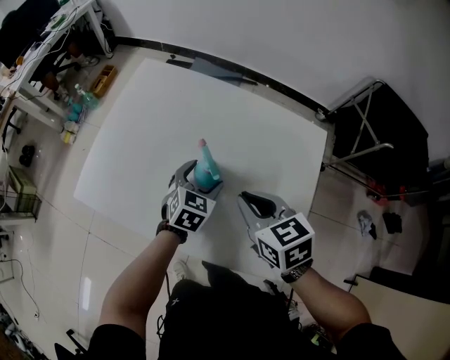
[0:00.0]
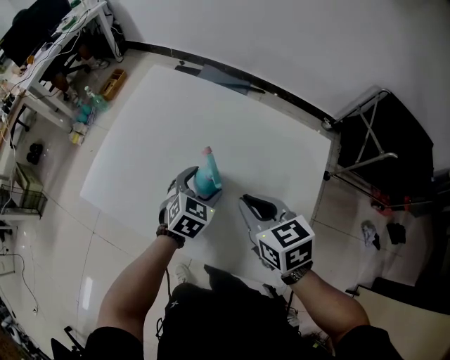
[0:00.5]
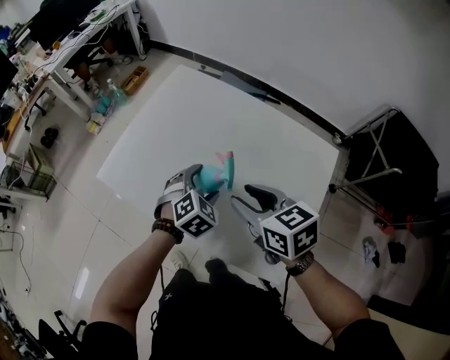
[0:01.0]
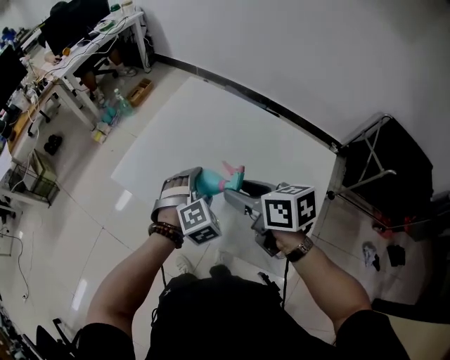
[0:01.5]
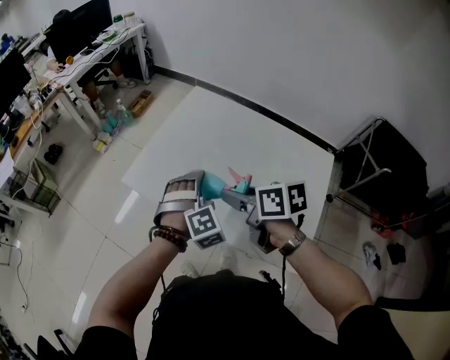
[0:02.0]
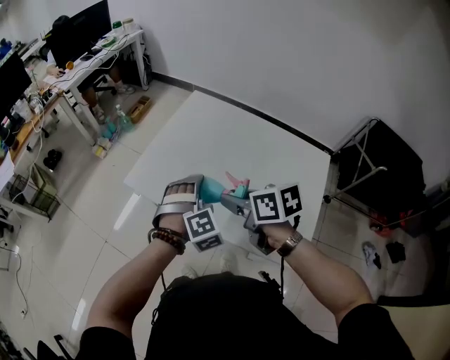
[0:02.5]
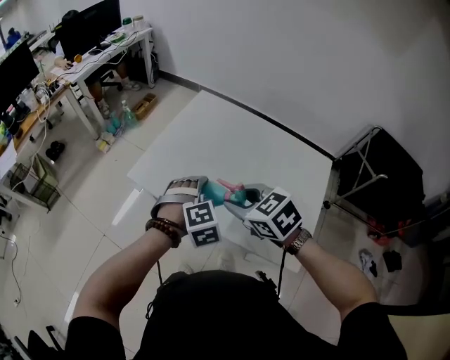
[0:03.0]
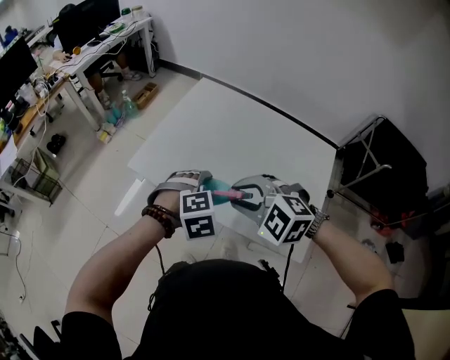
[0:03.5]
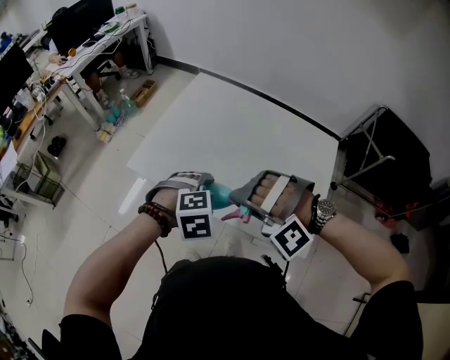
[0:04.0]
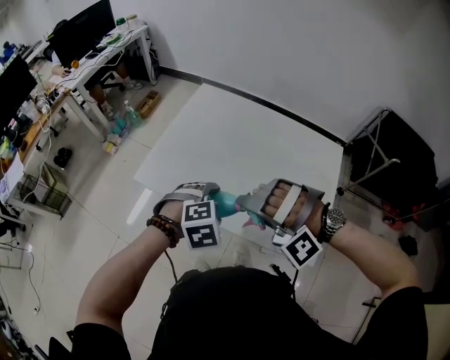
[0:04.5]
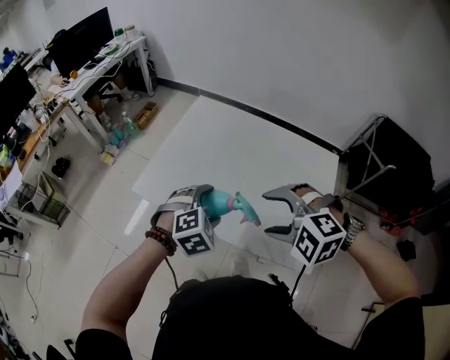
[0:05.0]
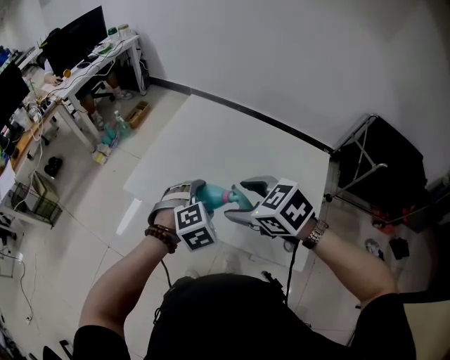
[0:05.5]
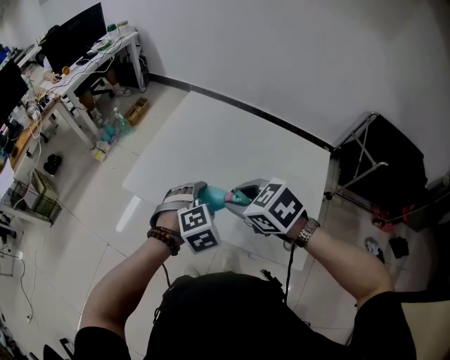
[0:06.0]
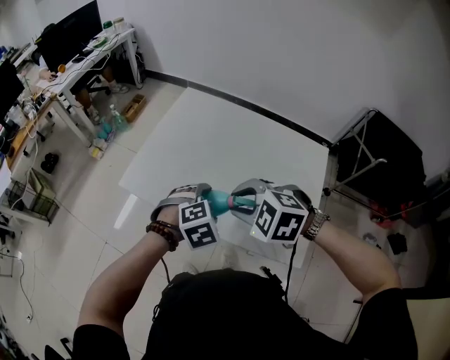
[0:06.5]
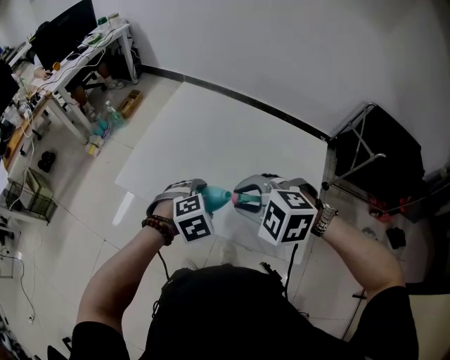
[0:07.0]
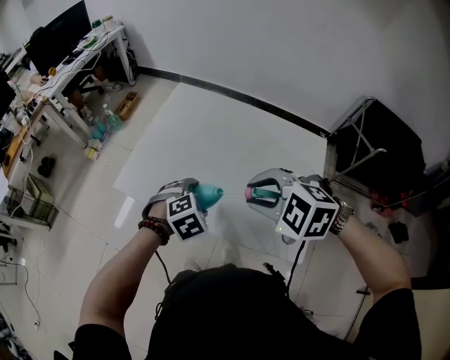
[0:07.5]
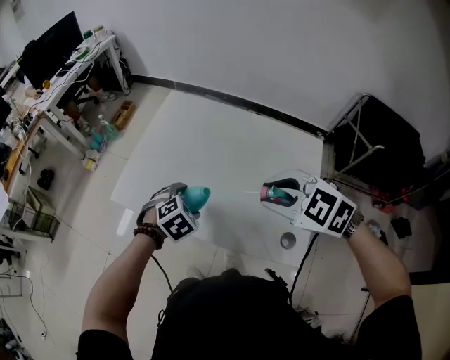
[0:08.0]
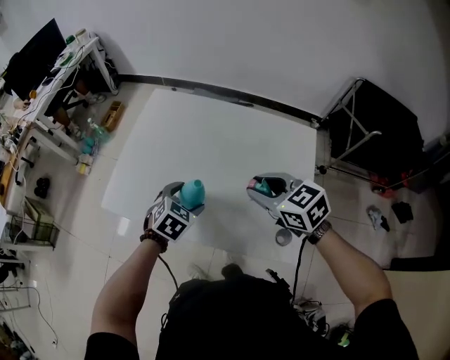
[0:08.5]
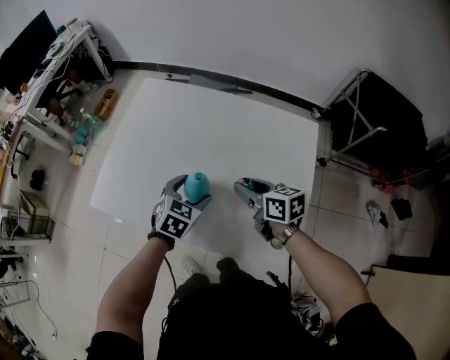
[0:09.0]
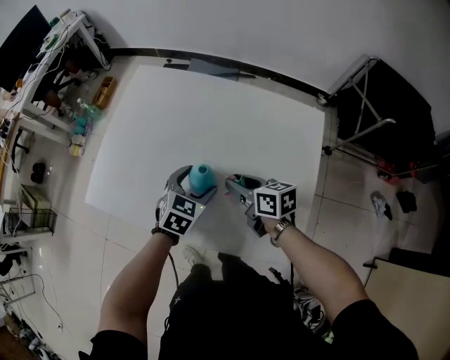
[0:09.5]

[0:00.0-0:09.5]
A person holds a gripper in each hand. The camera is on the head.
0:00.0 to 0:02.0: The left gripper moves roughly 20 cm, and rotates around the line of its fingers by roughly 40 degrees, clockwise from behind. Meanwhile the right gripper ends up about 15 cm from where it was, changes its angle by roughly 30 degrees, and opens up.
0:02.0 to 0:04.0: The right gripper ends up some 10 cm from where it was, and rotates around the line of its fingers by approximately 140 degrees, counterclockwise from behind. Meanwhile the left gripper moves some 10 cm, and rotates about 30 degrees.
0:04.0 to 0:05.5: The two grippers go some 5 cm forward. The right gripper twists roughly 90 degrees clockwise, seen from behind, and opens.
0:05.5 to 0:07.5: The right gripper turns by roughly 30 degrees, and closes its fingers.
0:07.5 to 0:09.5: The right gripper shifts some 25 cm downward, forward and to the right, and rotates around the line of its fingers by approximately 80 degrees, clockwise from behind. Meanwhile the left gripper heads to the right, forward and downward, covering about 15 cm, and turns by approximately 30 degrees.

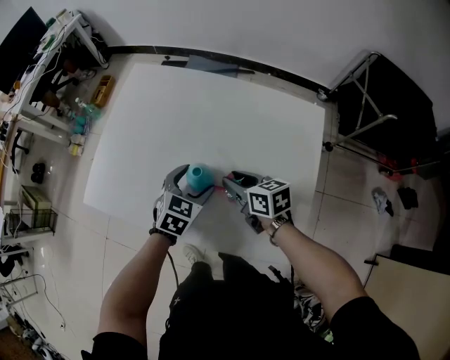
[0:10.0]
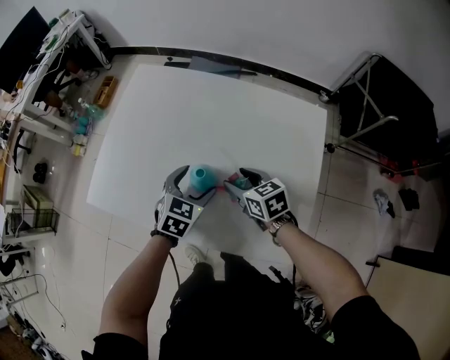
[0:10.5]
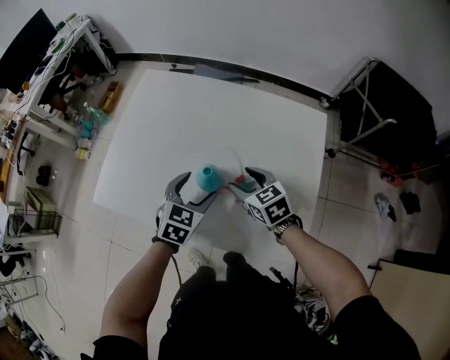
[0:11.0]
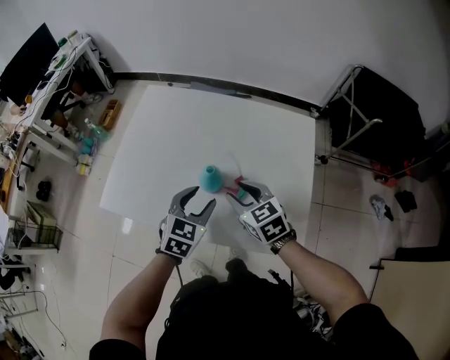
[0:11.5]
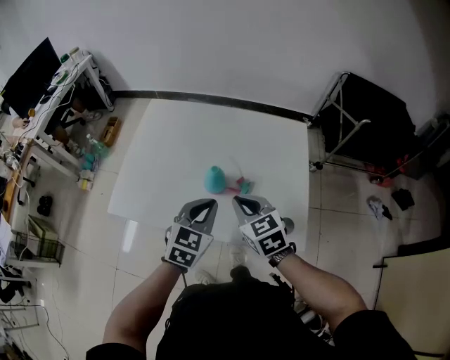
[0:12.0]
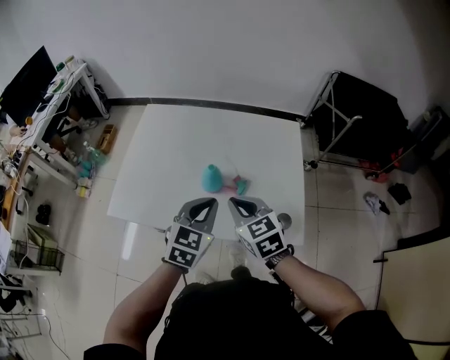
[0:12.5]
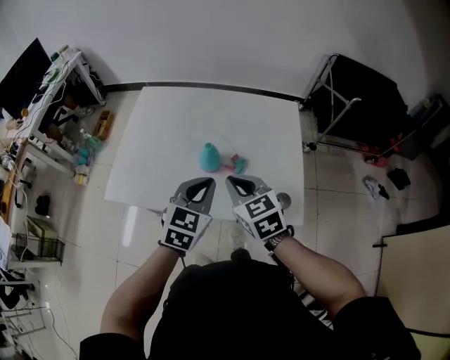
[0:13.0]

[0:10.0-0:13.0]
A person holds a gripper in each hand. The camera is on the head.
0:10.0 to 0:11.5: The left gripper goes about 10 cm upward and backward, and closes its fingers. The right gripper is displaced upward by about 5 cm, and changes its angle by approximately 30 degrees.
0:11.5 to 0:13.0: The two grippers go some 10 cm upward and backward. The right gripper closes; the left gripper closes its fingers.

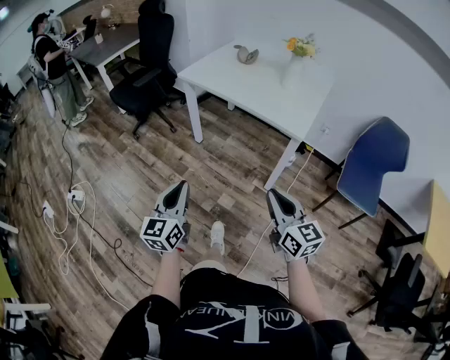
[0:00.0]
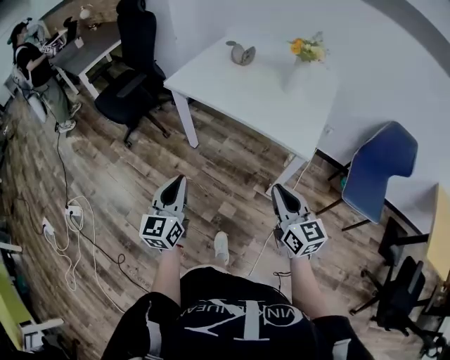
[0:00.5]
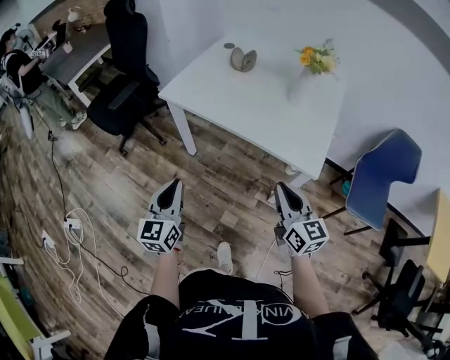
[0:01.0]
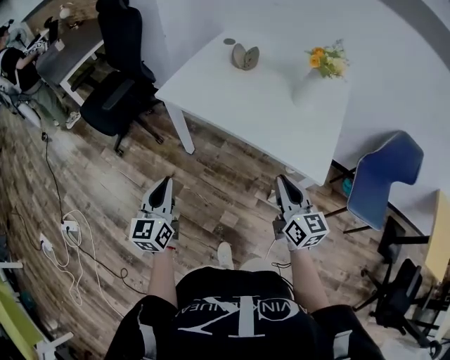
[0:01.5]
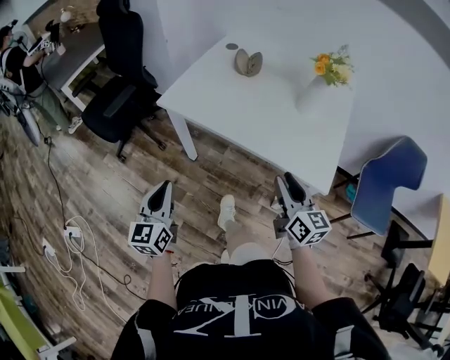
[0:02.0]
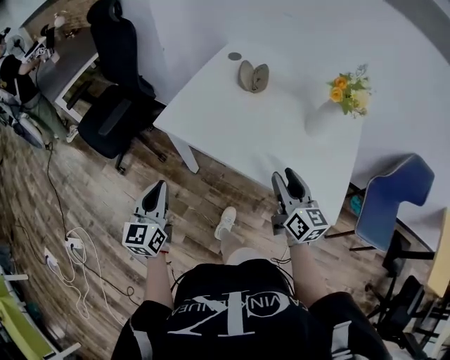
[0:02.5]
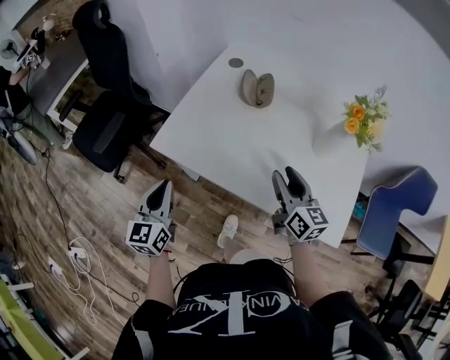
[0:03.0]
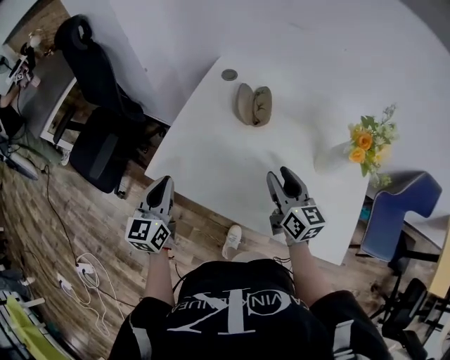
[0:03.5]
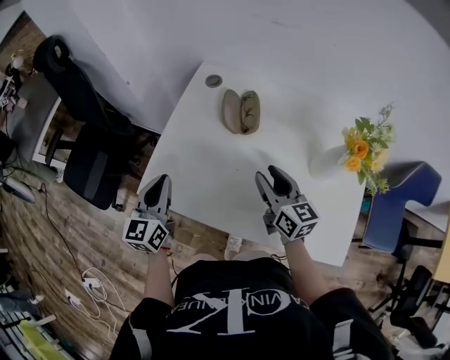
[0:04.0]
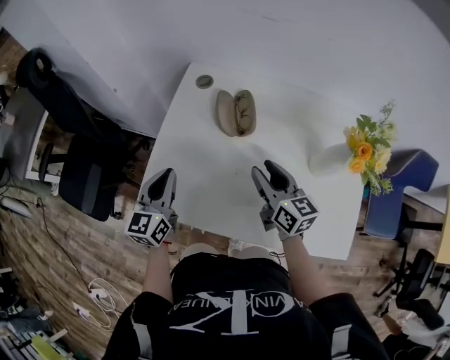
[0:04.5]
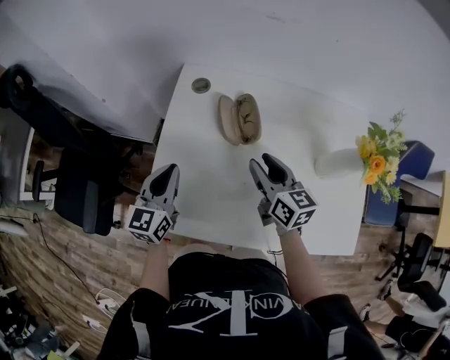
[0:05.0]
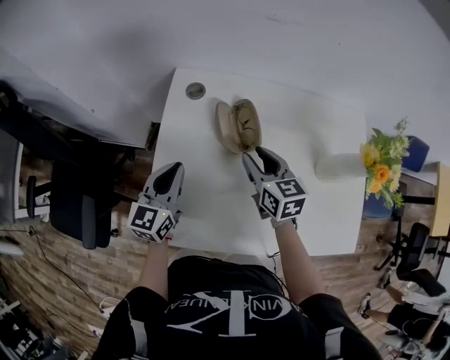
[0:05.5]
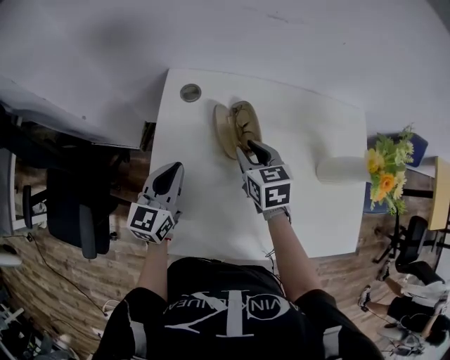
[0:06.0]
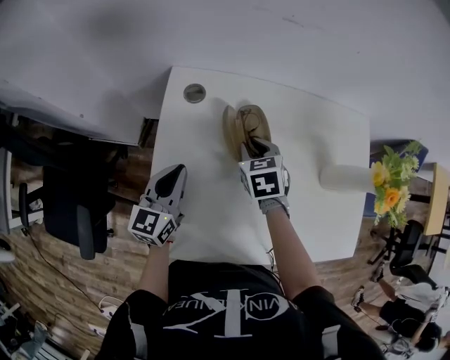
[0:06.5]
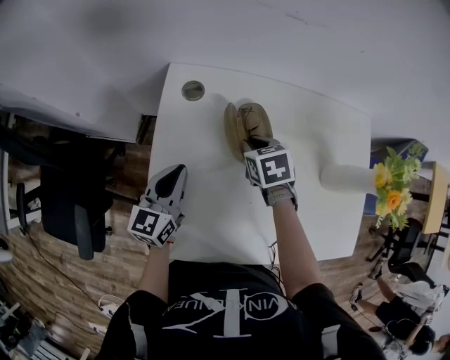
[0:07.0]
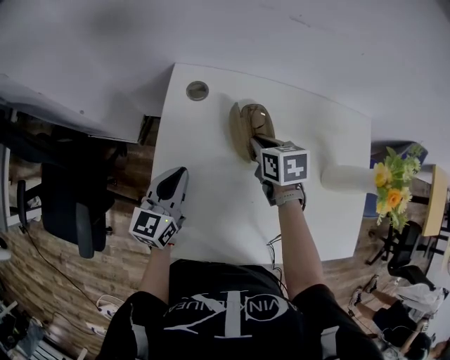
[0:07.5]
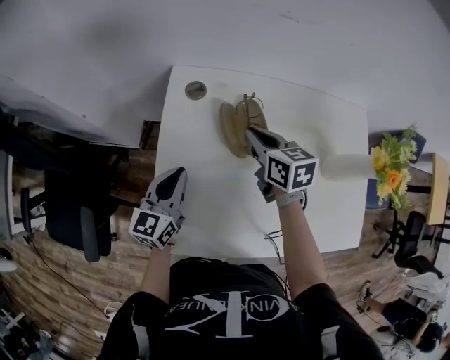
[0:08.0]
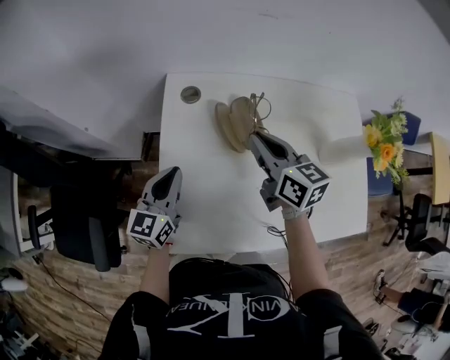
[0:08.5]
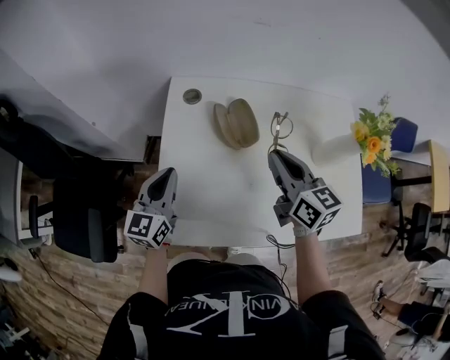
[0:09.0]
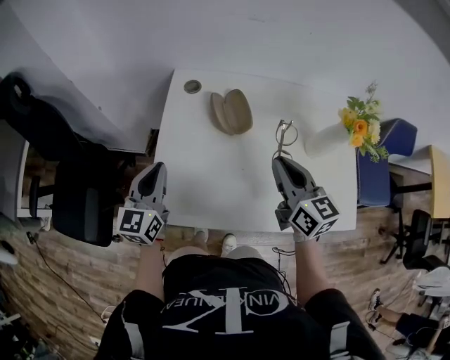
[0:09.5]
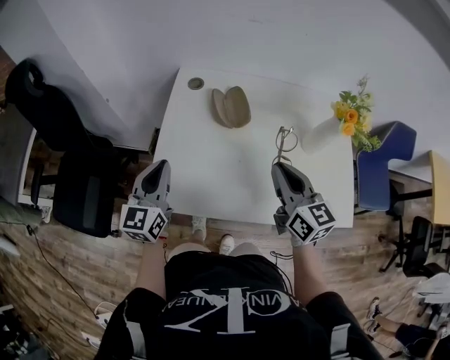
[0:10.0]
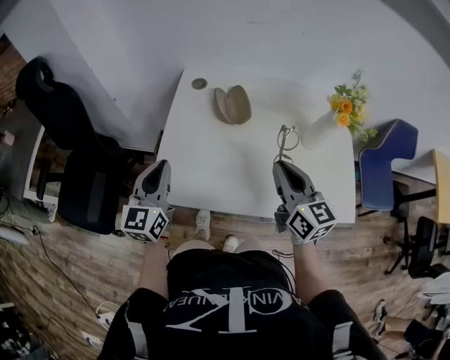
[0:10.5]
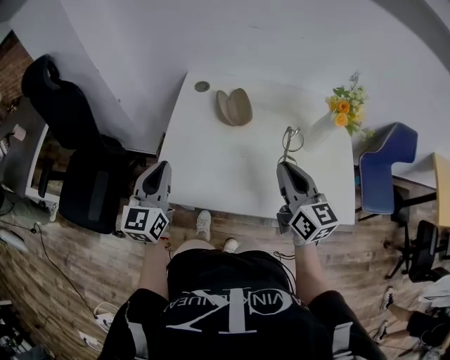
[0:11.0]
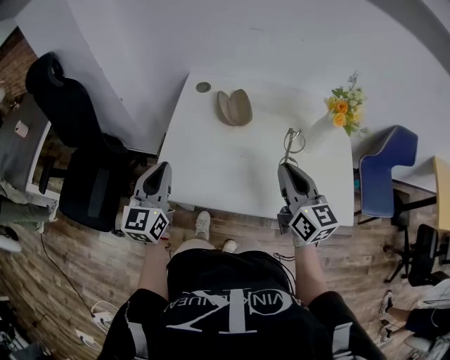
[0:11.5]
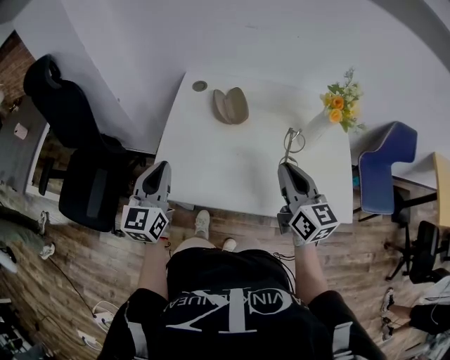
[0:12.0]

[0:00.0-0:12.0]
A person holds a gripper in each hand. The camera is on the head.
0:00.0 to 0:02.0: The two grippers go roughly 40 cm forward. The right gripper opens up.
0:02.0 to 0:04.0: Both grippers travel together forward, approximately 40 cm.
0:04.0 to 0:06.0: The left gripper is displaced forward by approximately 20 cm, and turns by approximately 30 degrees. Meanwhile the right gripper travels forward and to the left by roughly 20 cm, and rotates some 30 degrees.
0:06.0 to 0:08.0: The right gripper closes.
0:08.0 to 0:10.0: The right gripper goes approximately 30 cm backward, upward and to the right, and changes its angle by some 30 degrees. Meanwhile the left gripper is displaced backward and upward by roughly 20 cm.
0:10.0 to 0:12.0: The grippers both shift backward by approximately 5 cm.

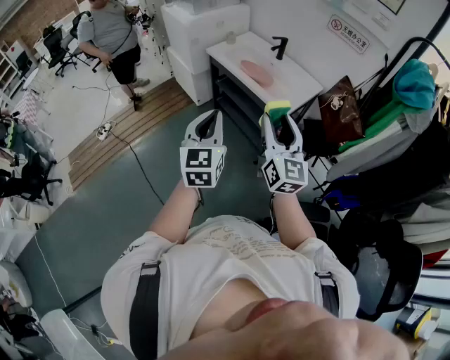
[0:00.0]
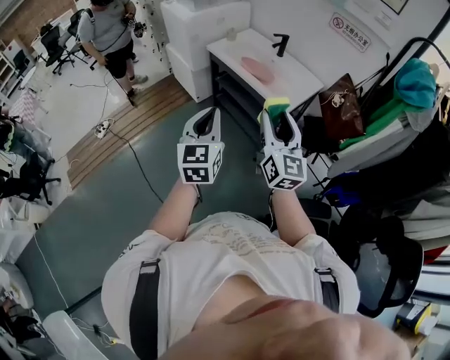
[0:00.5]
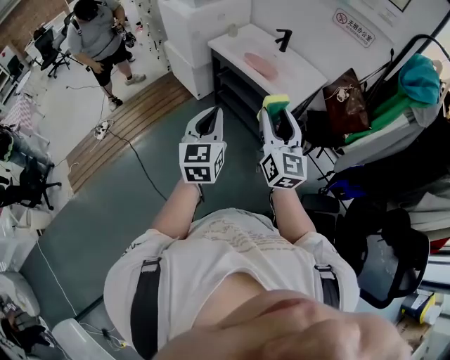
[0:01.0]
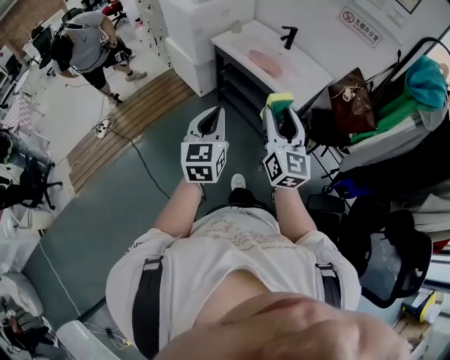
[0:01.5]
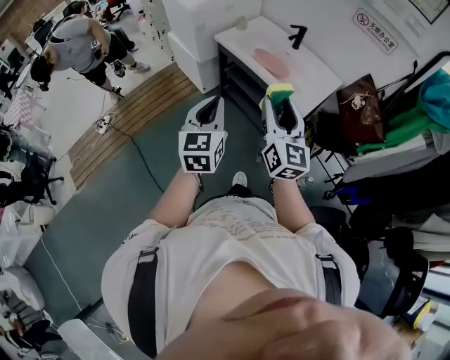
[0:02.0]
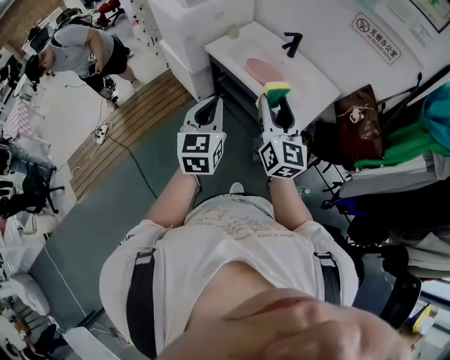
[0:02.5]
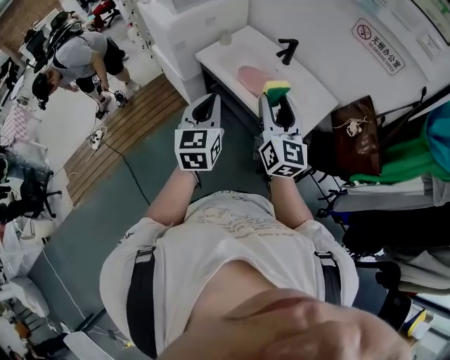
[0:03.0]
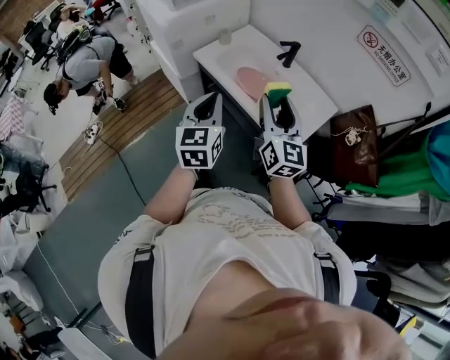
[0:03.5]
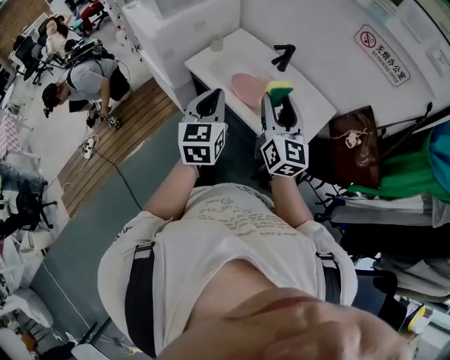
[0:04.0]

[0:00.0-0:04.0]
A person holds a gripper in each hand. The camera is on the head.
0:00.0 to 0:02.0: The grippers both shift forward and to the left by approximately 15 cm.
0:02.0 to 0:04.0: The two grippers go some 30 cm forward.
